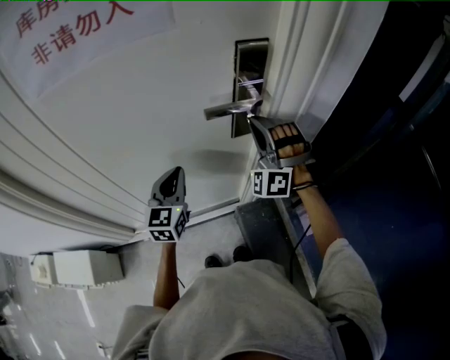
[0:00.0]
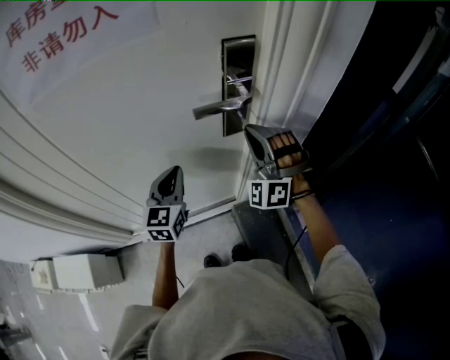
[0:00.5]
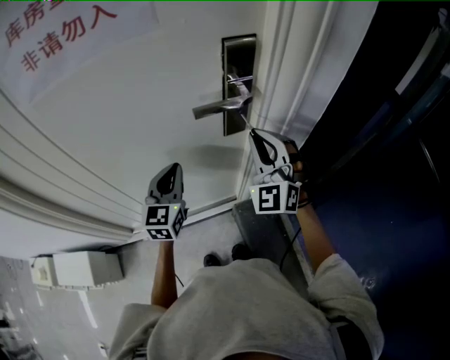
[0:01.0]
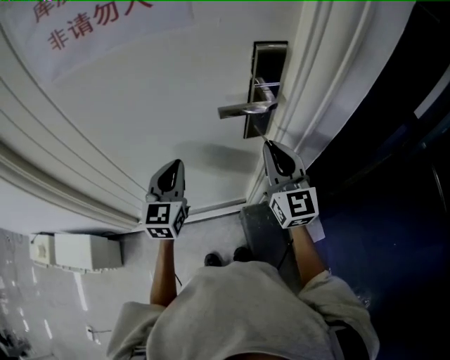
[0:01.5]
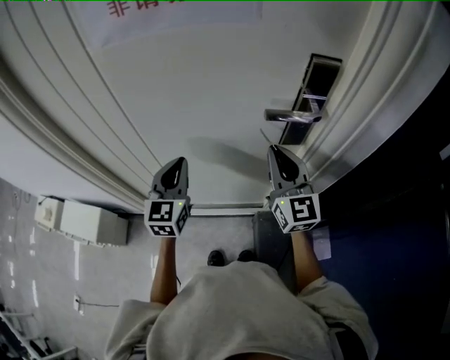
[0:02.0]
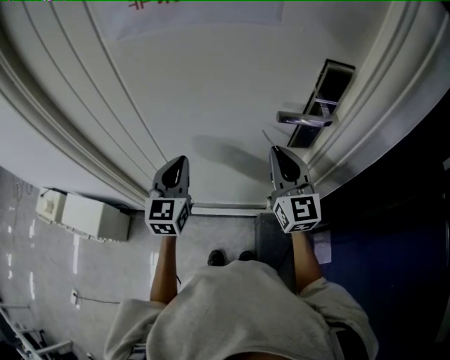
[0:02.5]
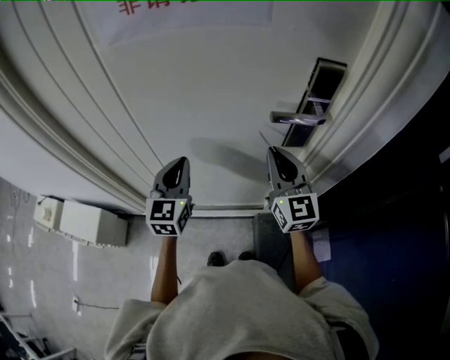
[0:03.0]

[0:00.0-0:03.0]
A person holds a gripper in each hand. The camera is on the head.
0:00.0 to 0:01.5: The right gripper shifts roughly 5 cm backward, and twists some 80 degrees clockwise, seen from behind.
0:01.5 to 0:03.0: Both grippers travel together to the left, roughly 10 cm.

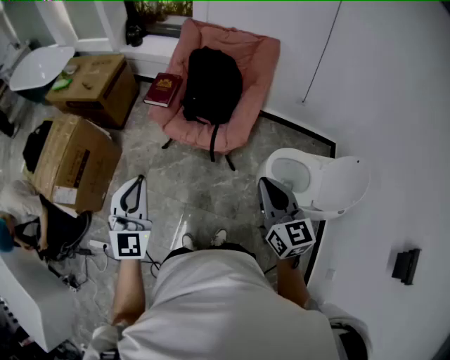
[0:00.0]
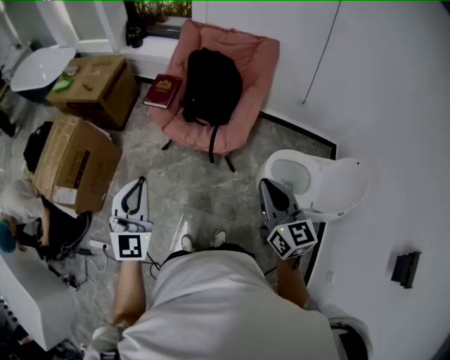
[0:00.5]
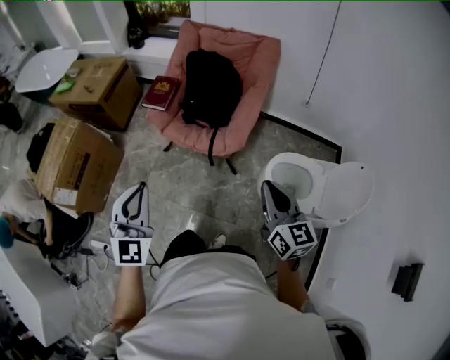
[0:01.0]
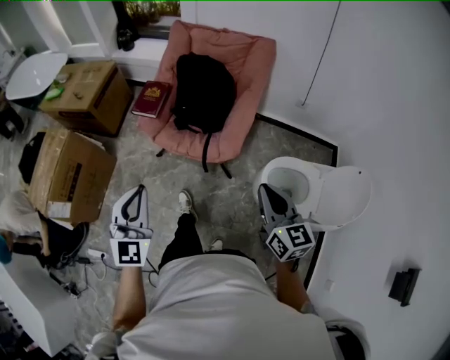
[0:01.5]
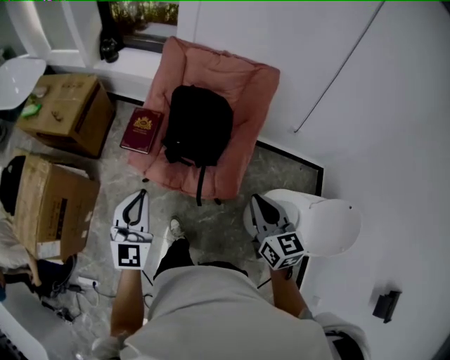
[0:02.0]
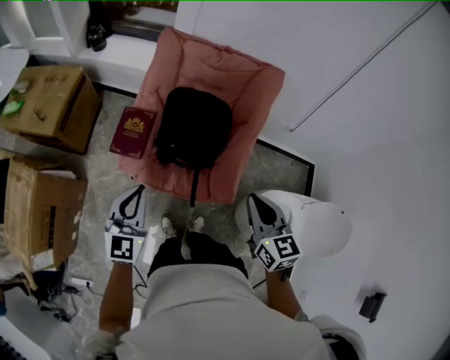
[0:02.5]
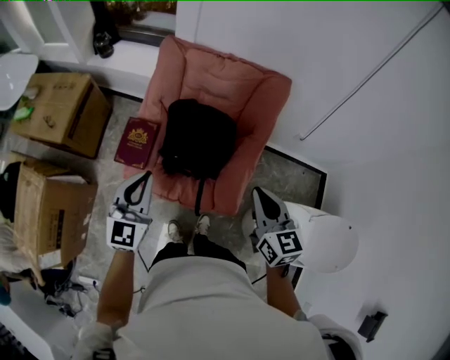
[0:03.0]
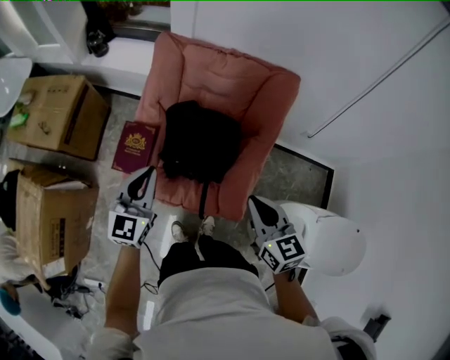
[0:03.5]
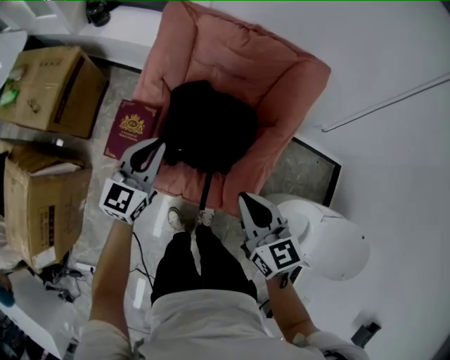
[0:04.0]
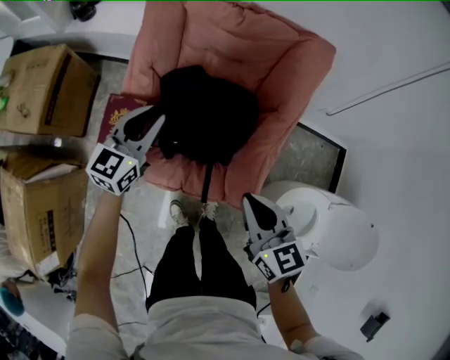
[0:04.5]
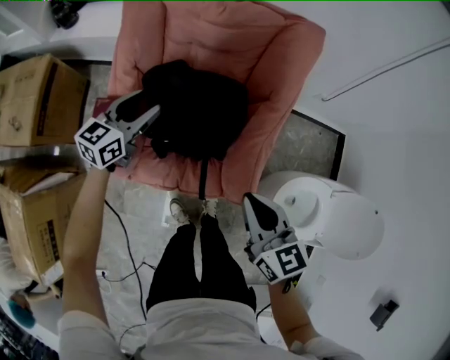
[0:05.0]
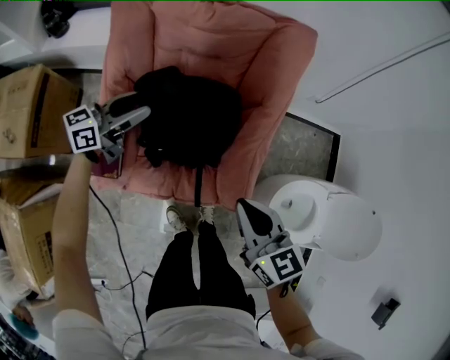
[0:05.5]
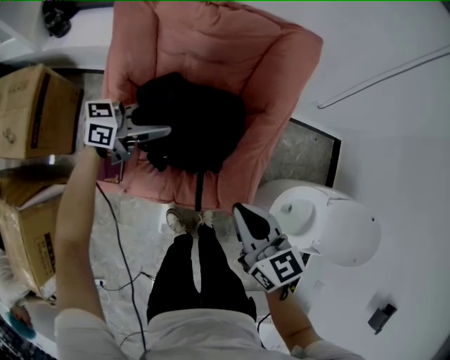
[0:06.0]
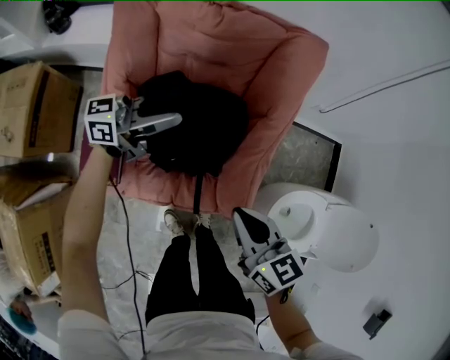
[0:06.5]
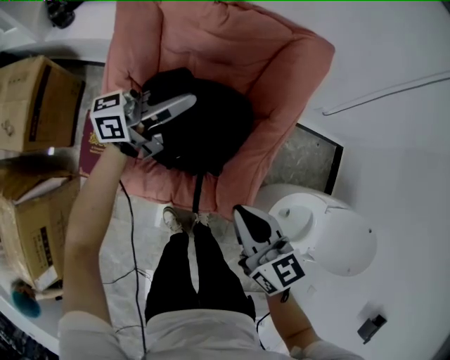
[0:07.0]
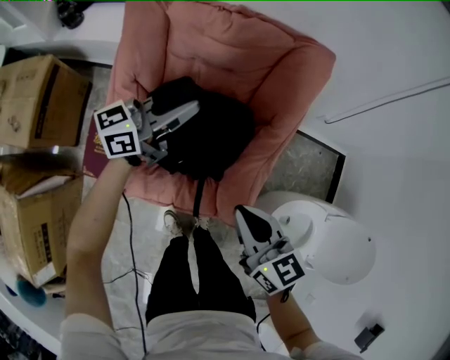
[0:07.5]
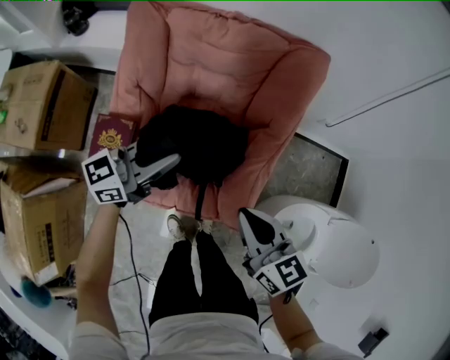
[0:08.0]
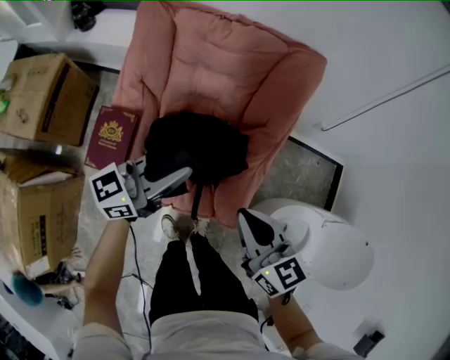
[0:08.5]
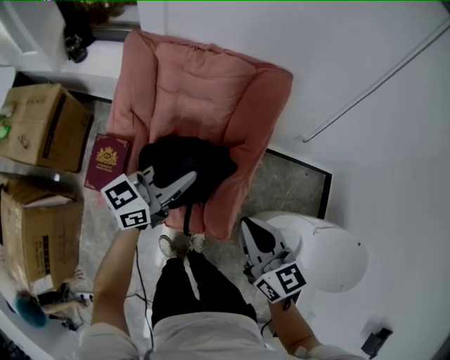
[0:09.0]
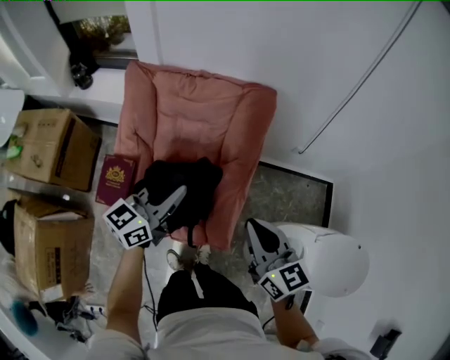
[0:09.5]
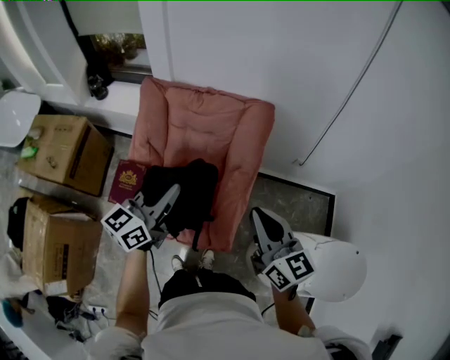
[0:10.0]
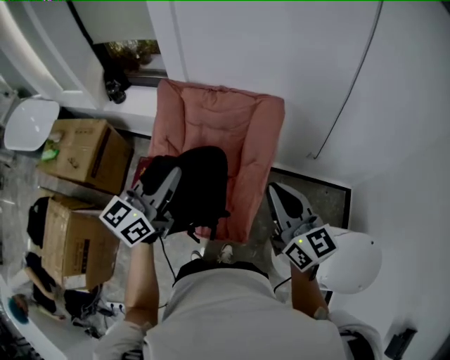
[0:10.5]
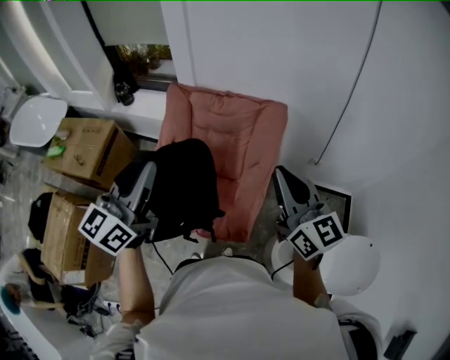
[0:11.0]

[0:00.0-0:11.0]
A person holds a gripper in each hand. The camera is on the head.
0:00.0 to 0:02.0: Both grippers travel together forward, roughly 30 cm.
0:02.0 to 0:03.5: Both grippers travel together forward, approximately 25 cm.
0:03.5 to 0:05.5: The right gripper heads downward, covering approximately 10 cm. The left gripper is displaced forward and downward by some 25 cm, changes its angle by about 50 degrees, and opens up.
0:05.5 to 0:07.5: The left gripper travels to the right, upward and forward by about 10 cm, and closes its fingers.
0:07.5 to 0:09.0: The right gripper heads upward and to the right, covering roughly 10 cm; the left gripper is displaced backward, to the right and upward by approximately 15 cm.
0:09.0 to 0:11.0: The left gripper goes approximately 30 cm upward and backward, and turns by about 40 degrees. The right gripper shifts roughly 25 cm upward, and changes its angle by some 20 degrees.

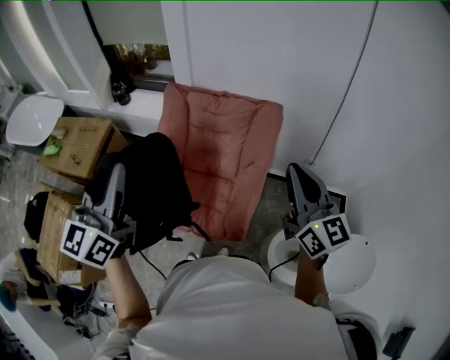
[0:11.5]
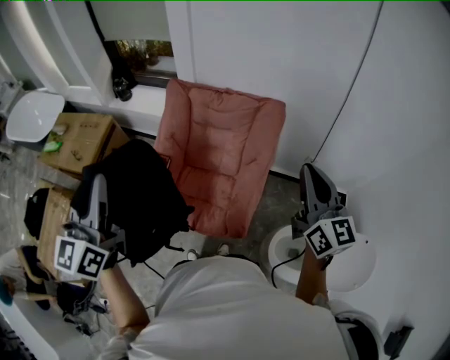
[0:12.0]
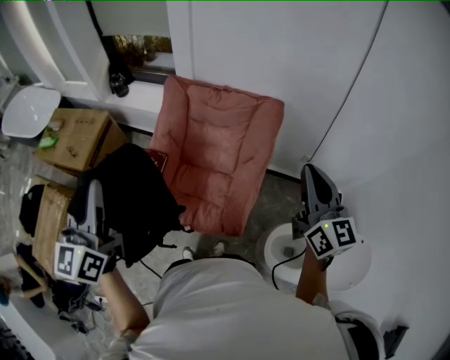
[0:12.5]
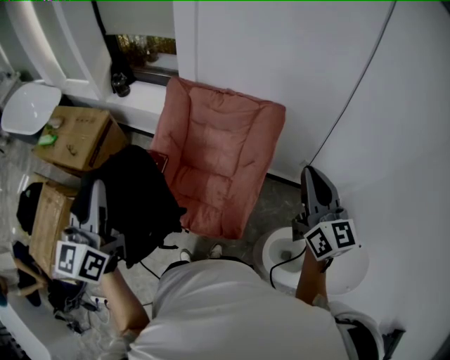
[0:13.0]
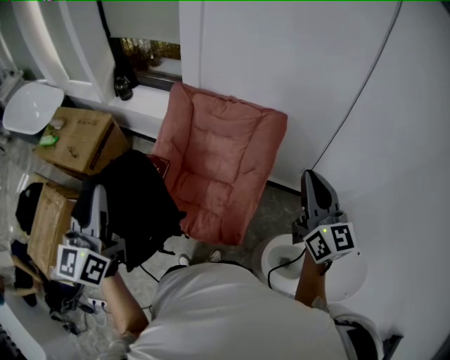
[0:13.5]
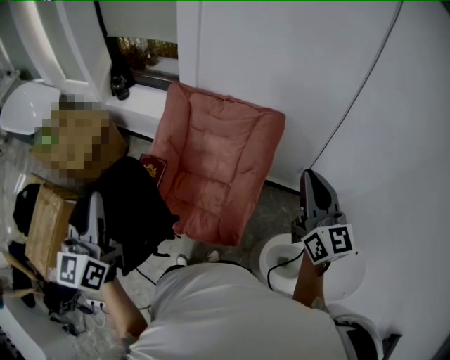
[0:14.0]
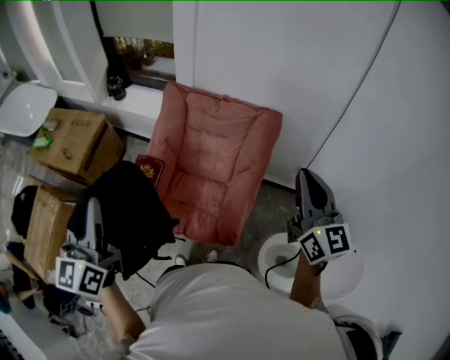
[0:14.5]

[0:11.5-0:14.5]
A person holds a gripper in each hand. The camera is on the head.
0:11.5 to 0:13.0: The left gripper shifts some 10 cm to the left.
0:13.0 to 0:14.5: There are only small adjustments of the grippers.

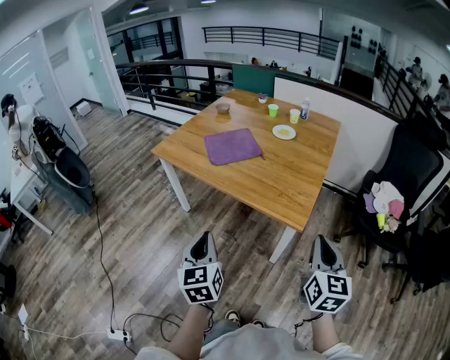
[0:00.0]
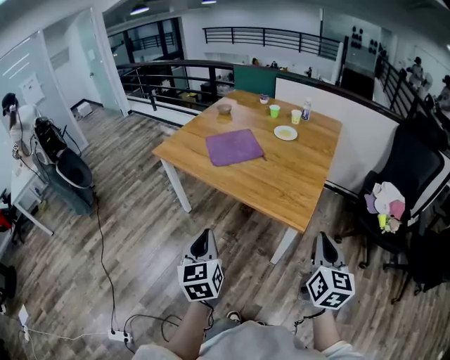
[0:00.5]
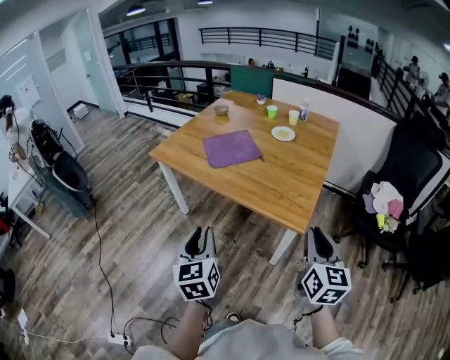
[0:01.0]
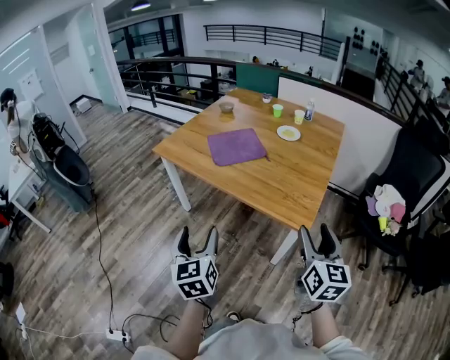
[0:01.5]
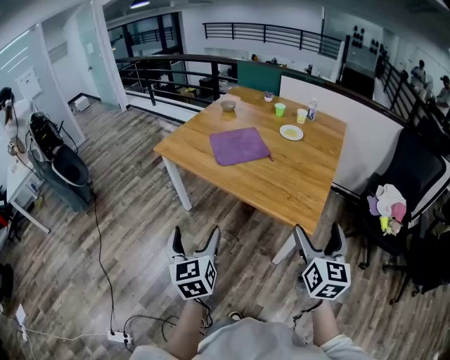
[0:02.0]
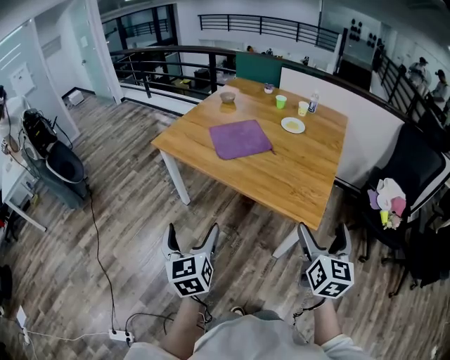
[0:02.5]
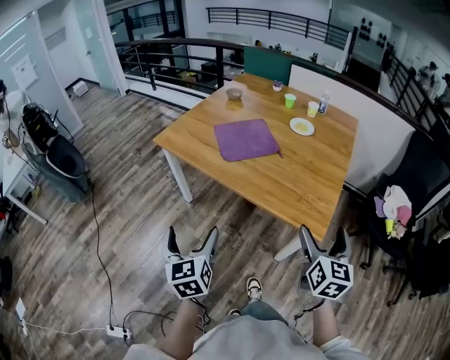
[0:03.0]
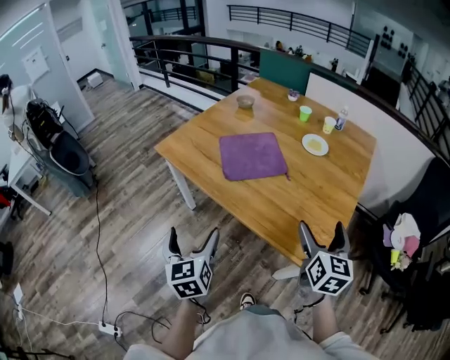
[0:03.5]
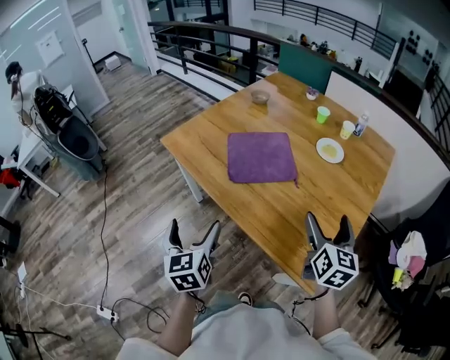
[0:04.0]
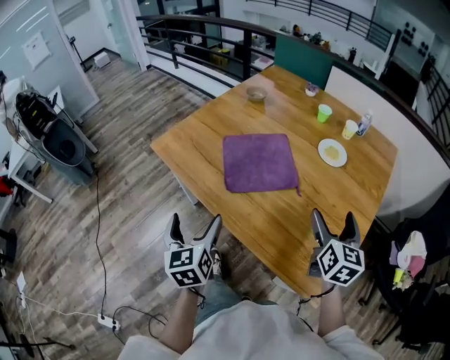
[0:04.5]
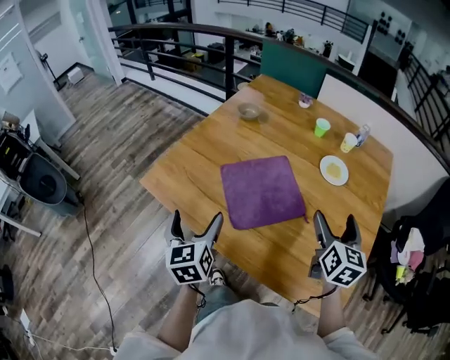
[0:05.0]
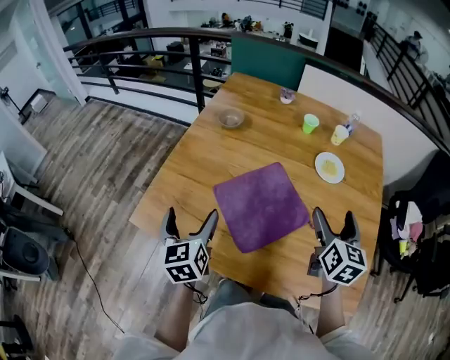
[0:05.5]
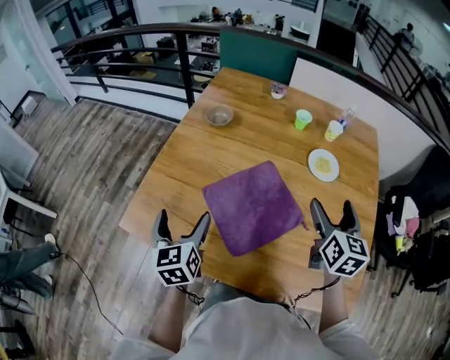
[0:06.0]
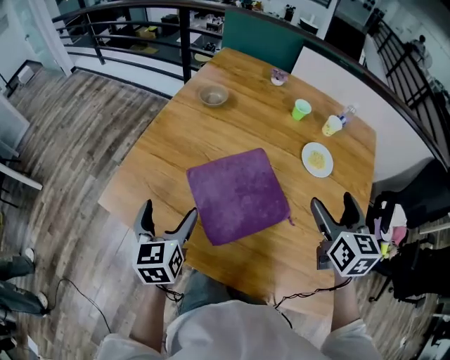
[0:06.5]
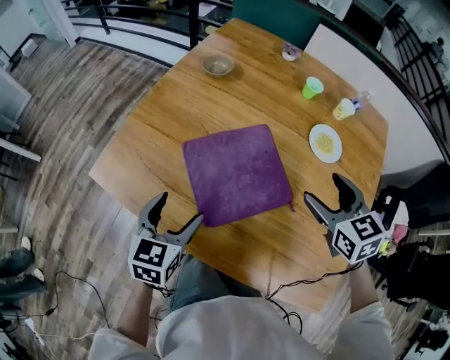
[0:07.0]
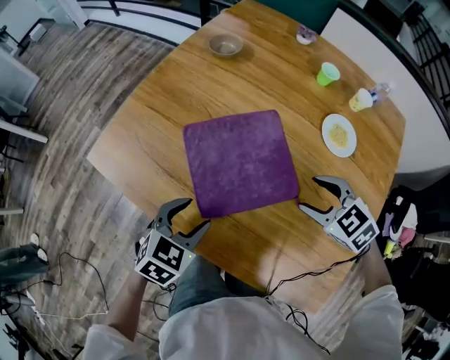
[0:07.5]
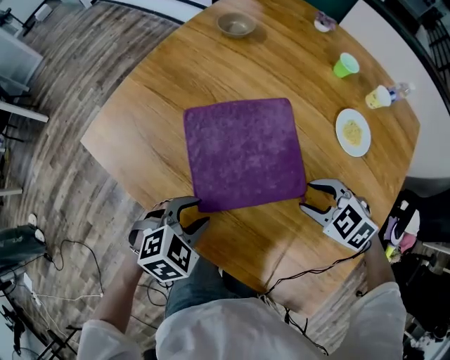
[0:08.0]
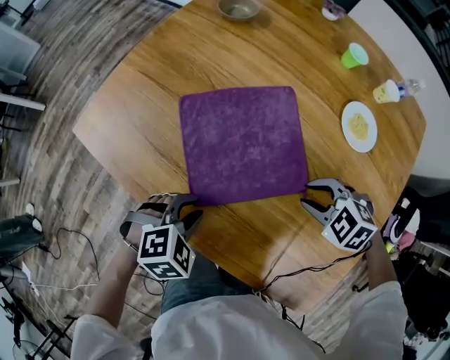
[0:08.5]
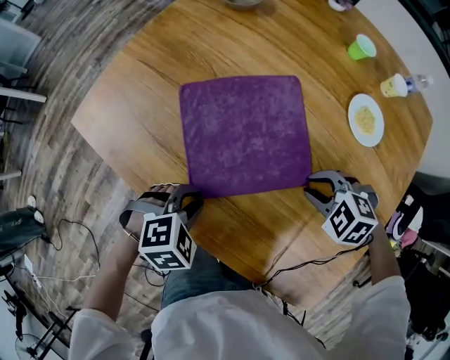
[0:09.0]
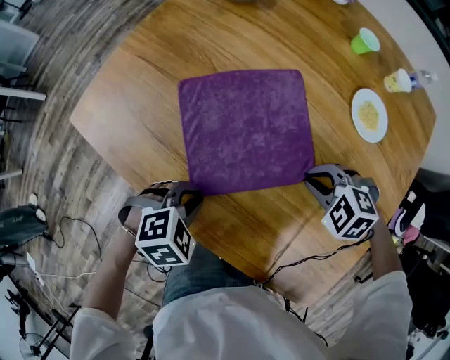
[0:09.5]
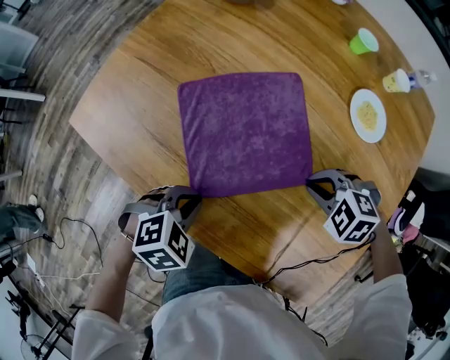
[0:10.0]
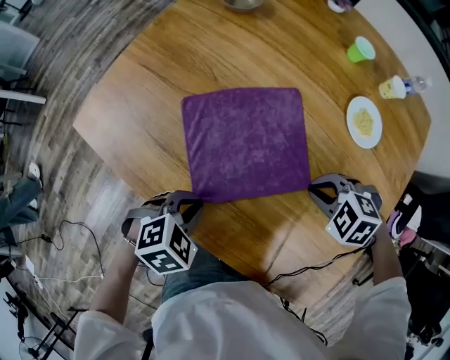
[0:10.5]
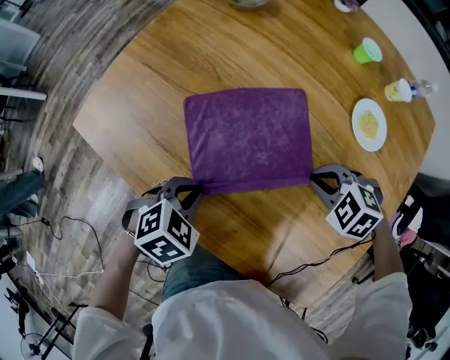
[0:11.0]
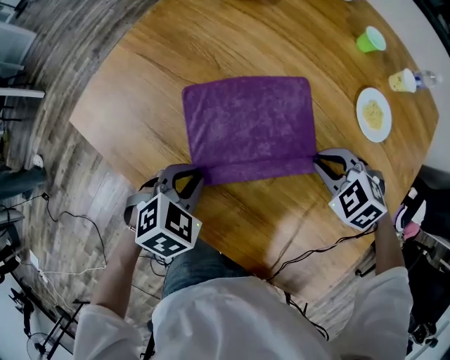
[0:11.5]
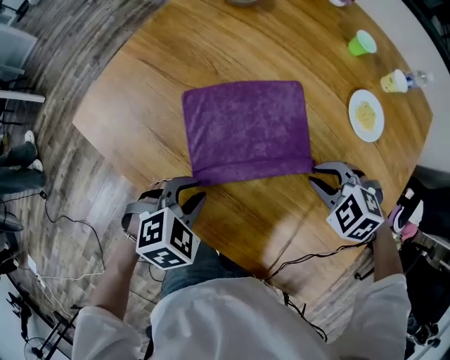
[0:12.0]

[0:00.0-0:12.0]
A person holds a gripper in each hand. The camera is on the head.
0:00.0 to 0:02.0: The left gripper moves to the left, some 5 cm, and opens up; the right gripper heads forward, covering about 5 cm, and opens.
0:02.0 to 0:04.0: The grippers both shift forward by some 25 cm.
0:04.0 to 0:06.0: The left gripper is displaced forward by roughly 40 cm, and changes its angle by approximately 20 degrees. Meanwhile the right gripper goes some 25 cm forward, and rotates approximately 20 degrees.
0:06.0 to 0:08.0: The left gripper shifts some 25 cm downward, to the right and backward, angles its fingers downward, by some 40 degrees, and closes up. Meanwhile the right gripper heads downward, covering roughly 20 cm, tilts its fingers approximately 40 degrees downward, and closes.
0:08.0 to 0:10.0: The right gripper closes.
